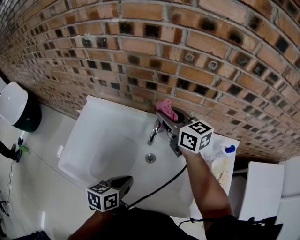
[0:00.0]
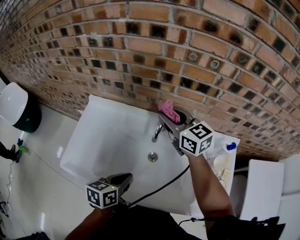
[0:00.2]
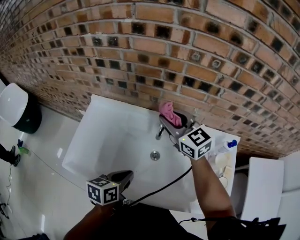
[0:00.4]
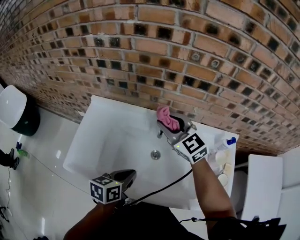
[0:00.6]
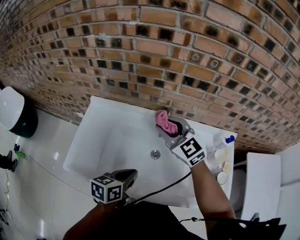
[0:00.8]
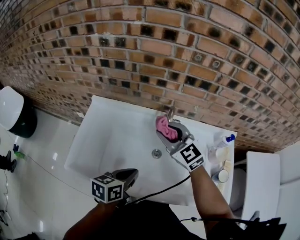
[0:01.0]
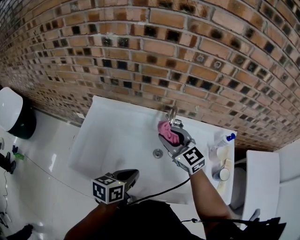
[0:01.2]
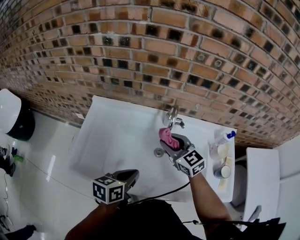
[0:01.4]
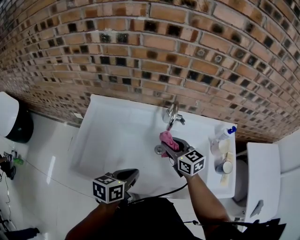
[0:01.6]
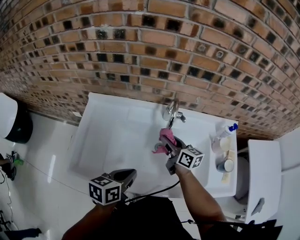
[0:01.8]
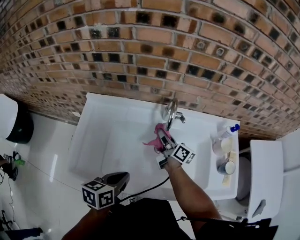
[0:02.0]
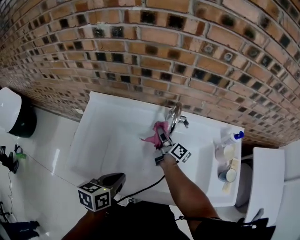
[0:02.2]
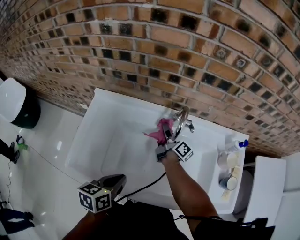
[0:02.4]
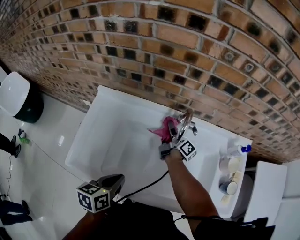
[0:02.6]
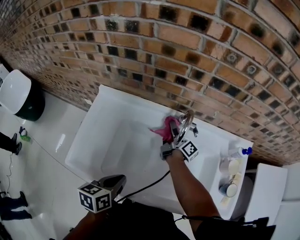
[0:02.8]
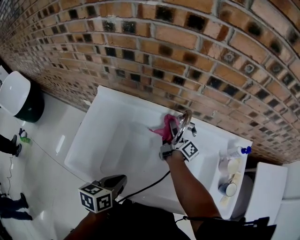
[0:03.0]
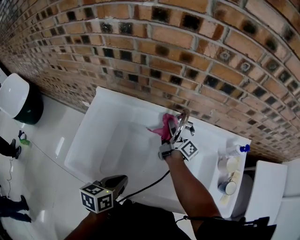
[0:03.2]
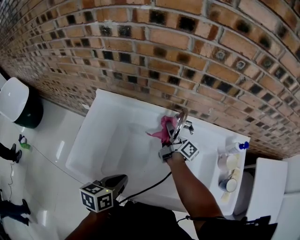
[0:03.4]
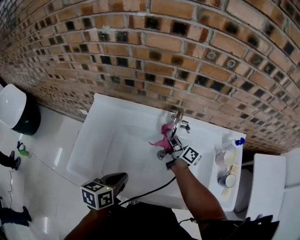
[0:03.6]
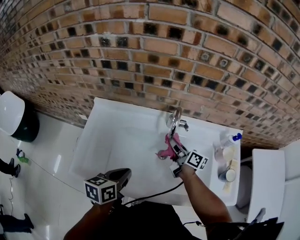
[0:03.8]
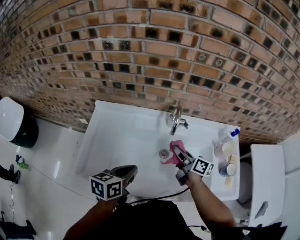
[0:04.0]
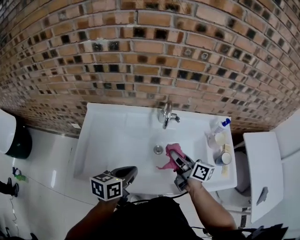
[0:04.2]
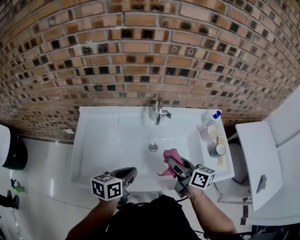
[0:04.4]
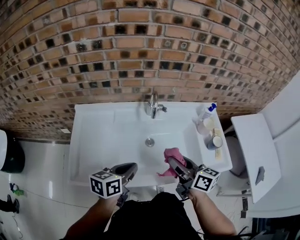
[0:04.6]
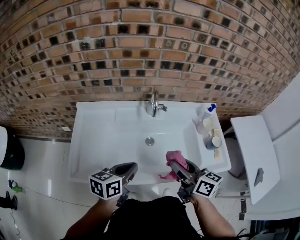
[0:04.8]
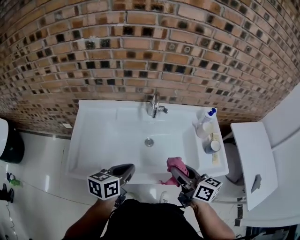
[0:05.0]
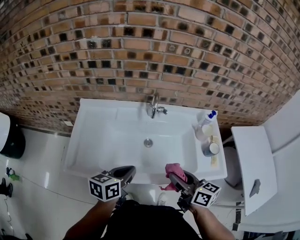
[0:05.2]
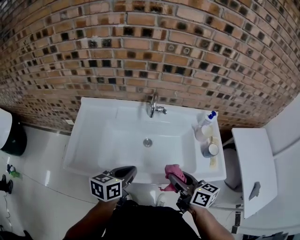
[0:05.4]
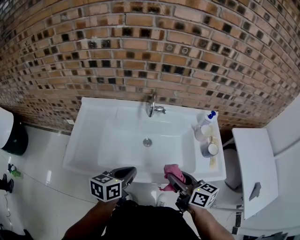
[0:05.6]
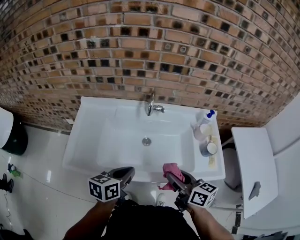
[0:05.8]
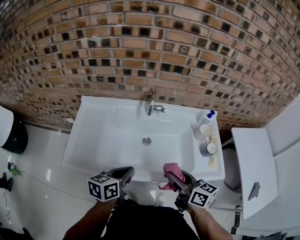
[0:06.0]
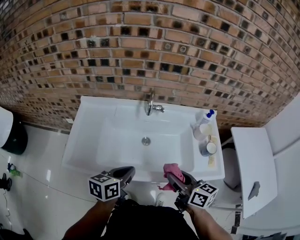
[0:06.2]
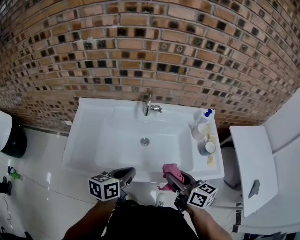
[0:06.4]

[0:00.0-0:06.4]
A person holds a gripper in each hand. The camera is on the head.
0:00.0 to 0:01.6: The left gripper moves to the left, about 5 cm, while the right gripper shifts some 20 cm backward and downward.
0:01.6 to 0:03.2: The right gripper moves forward, about 15 cm, and rotates around the line of its fingers by approximately 60 degrees, clockwise from behind.
0:03.2 to 0:04.8: The right gripper moves backward, roughly 35 cm, and rotates some 40 degrees, while the left gripper heads upward, covering approximately 5 cm, and rotates some 30 degrees.
0:04.8 to 0:06.4: The right gripper moves backward, some 5 cm; the left gripper is displaced to the right by roughly 5 cm.

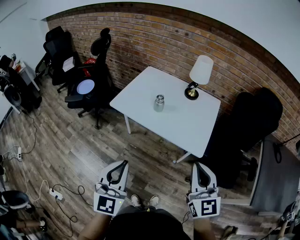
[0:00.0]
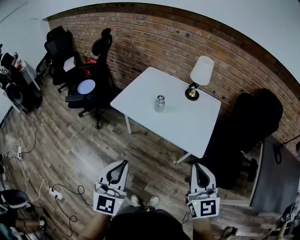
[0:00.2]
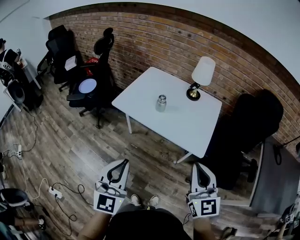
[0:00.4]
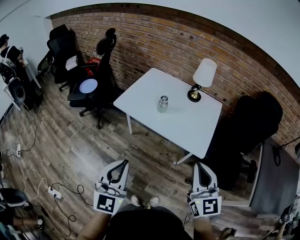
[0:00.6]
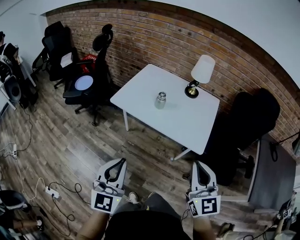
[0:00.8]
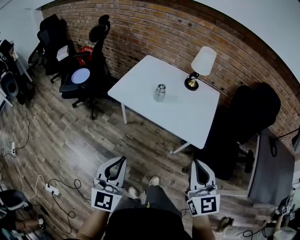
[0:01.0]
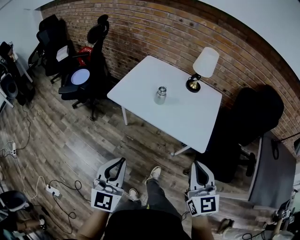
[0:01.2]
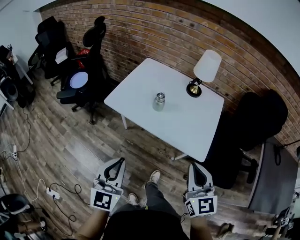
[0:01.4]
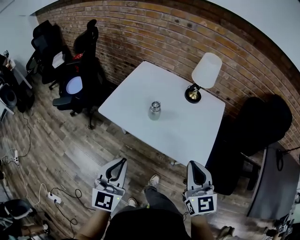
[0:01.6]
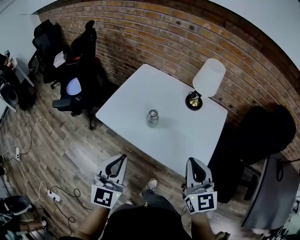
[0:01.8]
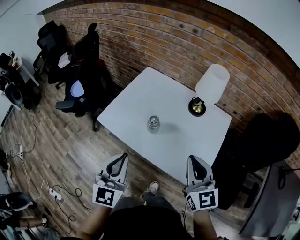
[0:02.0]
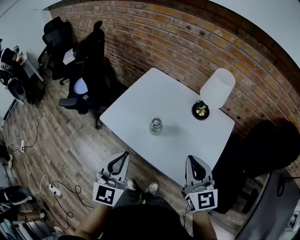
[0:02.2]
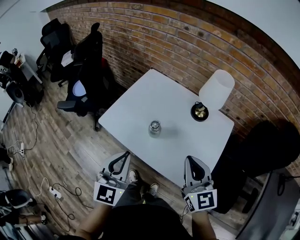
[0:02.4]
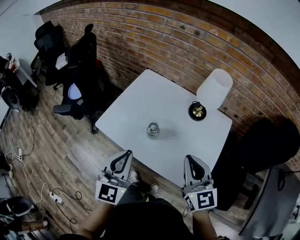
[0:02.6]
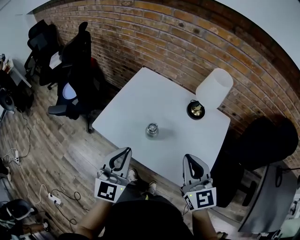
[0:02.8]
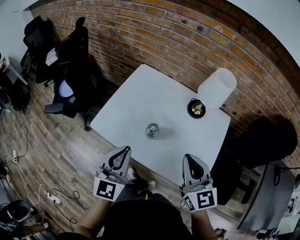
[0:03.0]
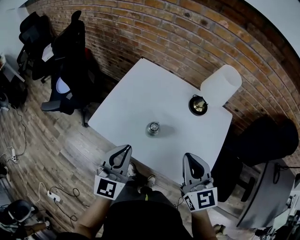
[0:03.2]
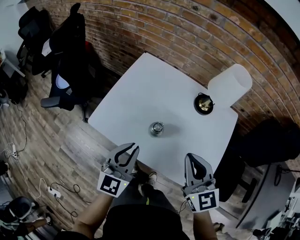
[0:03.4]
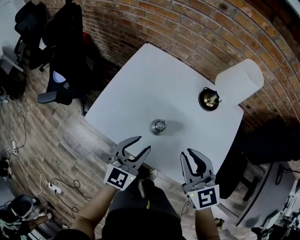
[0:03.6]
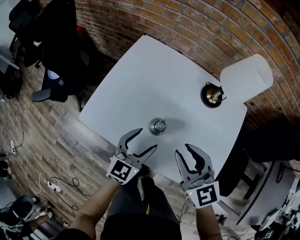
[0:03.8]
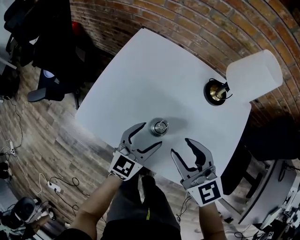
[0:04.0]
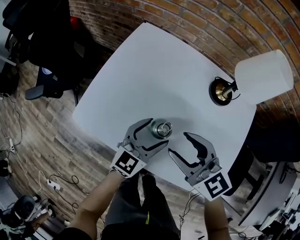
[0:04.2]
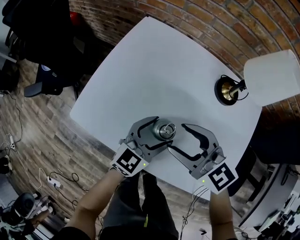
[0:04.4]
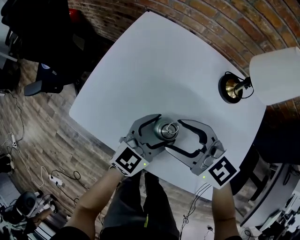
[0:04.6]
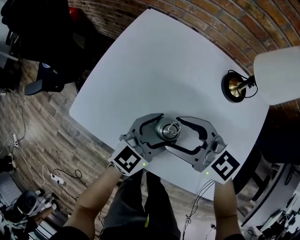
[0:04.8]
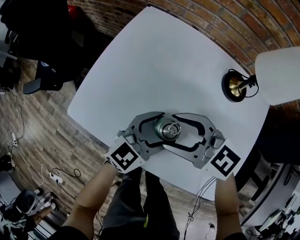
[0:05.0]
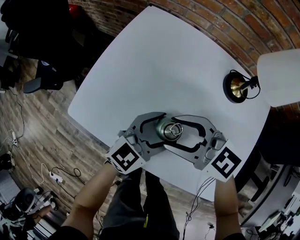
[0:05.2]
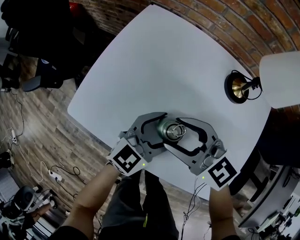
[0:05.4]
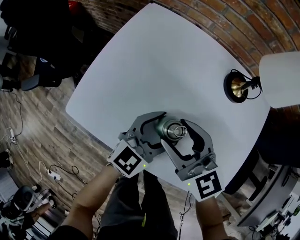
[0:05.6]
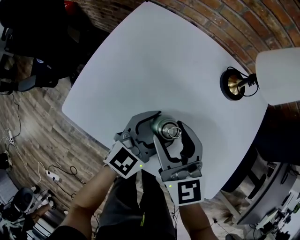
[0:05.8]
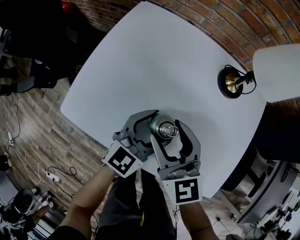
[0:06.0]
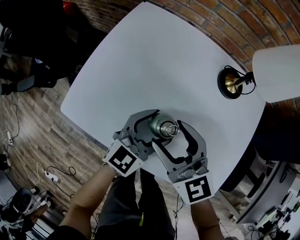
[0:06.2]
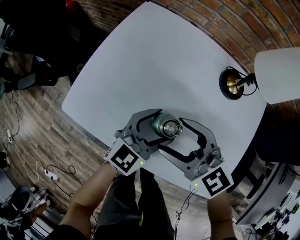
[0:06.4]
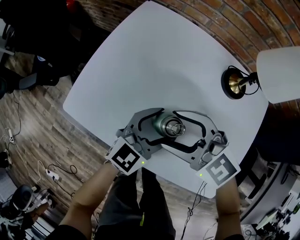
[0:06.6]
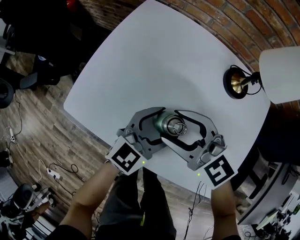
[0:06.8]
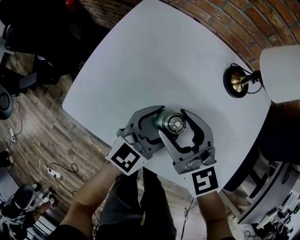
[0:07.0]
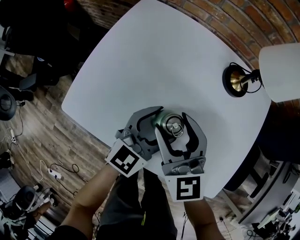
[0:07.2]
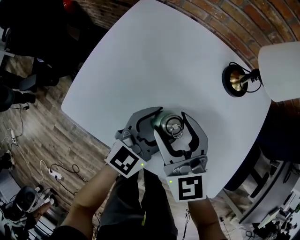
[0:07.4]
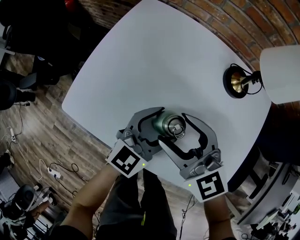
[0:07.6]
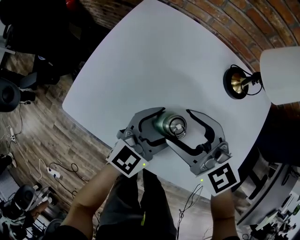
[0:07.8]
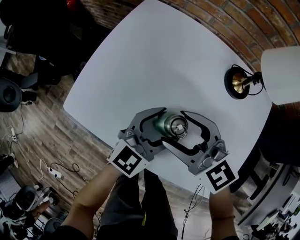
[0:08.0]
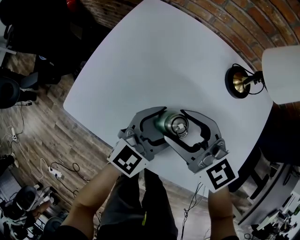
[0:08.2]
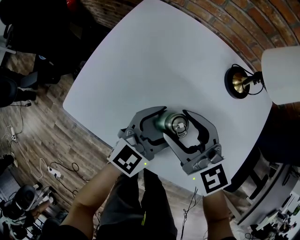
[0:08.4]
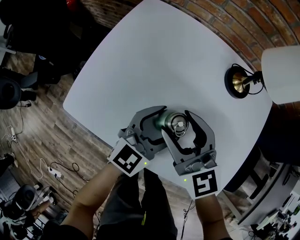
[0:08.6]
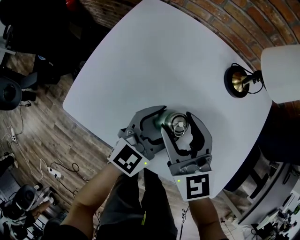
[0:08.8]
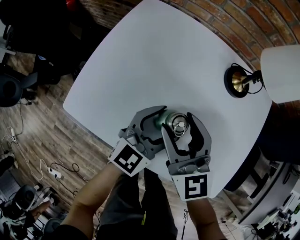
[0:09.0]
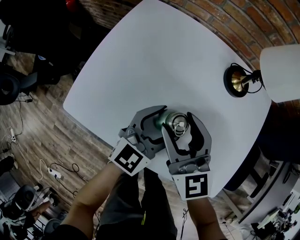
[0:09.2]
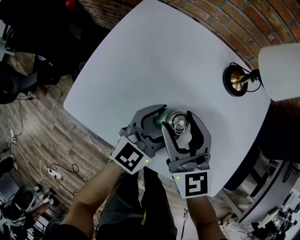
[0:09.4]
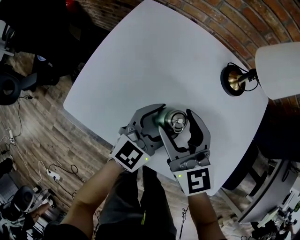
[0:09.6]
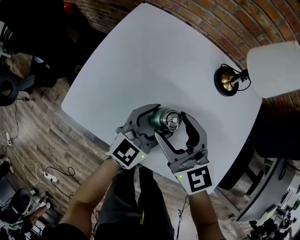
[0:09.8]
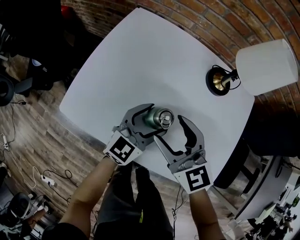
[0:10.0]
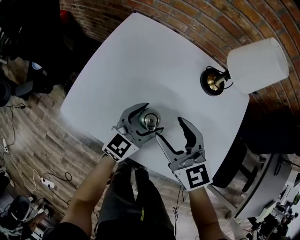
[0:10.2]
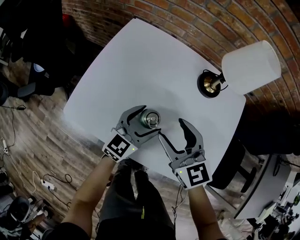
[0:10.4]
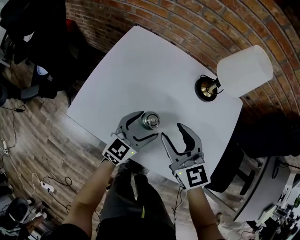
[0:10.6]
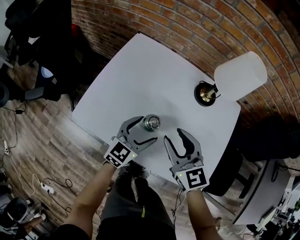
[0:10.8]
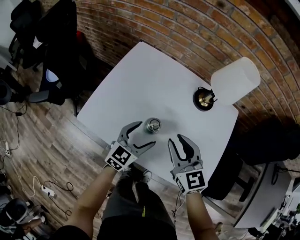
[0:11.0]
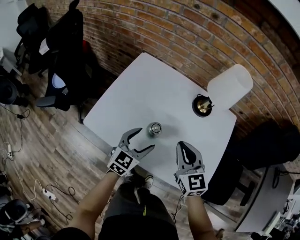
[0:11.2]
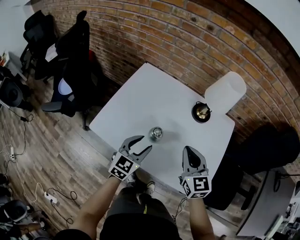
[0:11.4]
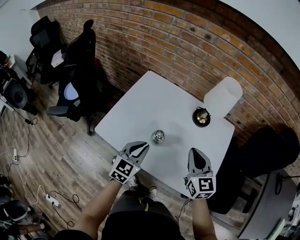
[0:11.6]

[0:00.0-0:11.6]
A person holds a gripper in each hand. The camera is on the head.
0:00.0 to 0:01.4: The grippers both shift forward and downward by roughly 10 cm.
0:01.4 to 0:02.8: Both grippers move forward, about 25 cm.
0:02.8 to 0:04.4: The left gripper heads downward and forward, covering about 30 cm, turns by about 30 degrees, and opens its fingers. The right gripper heads downward, forward and to the left, covering some 25 cm, turns by roughly 40 degrees, and opens.
0:04.4 to 0:05.8: The right gripper turns by some 30 degrees.
0:08.8 to 0:10.2: There are only small adjustments of the grippers.
0:10.2 to 0:11.6: The right gripper shifts about 15 cm to the right and upward, and closes. Meanwhile the left gripper travels upward, backward and to the left by approximately 15 cm, and closes up.

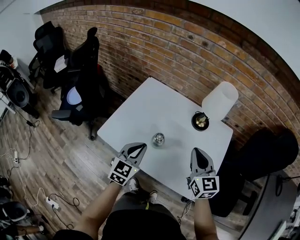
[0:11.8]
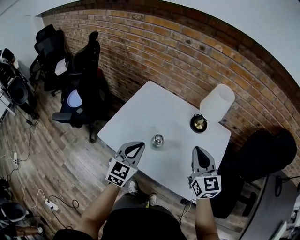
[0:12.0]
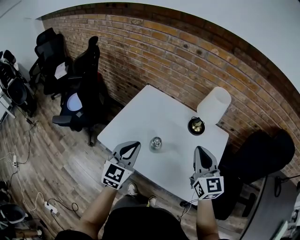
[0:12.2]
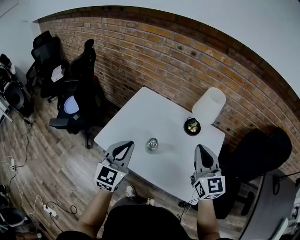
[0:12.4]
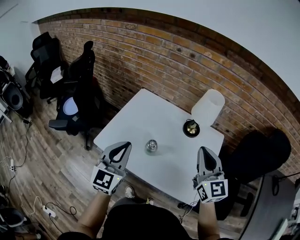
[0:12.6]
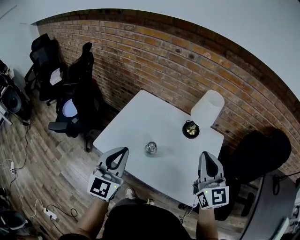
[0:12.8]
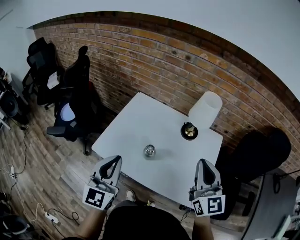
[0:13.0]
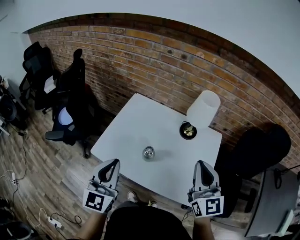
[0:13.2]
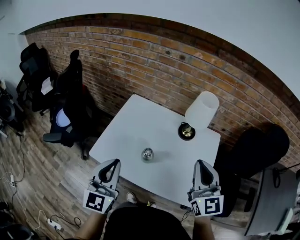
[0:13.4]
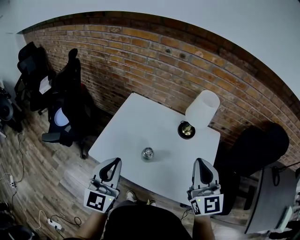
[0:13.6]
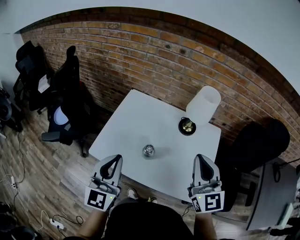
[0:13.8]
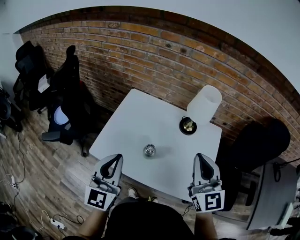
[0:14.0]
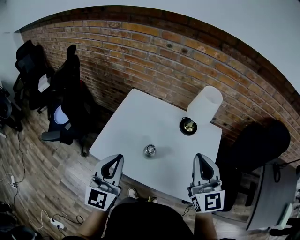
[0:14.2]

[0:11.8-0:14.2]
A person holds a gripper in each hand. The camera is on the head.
0:11.8 to 0:13.0: The grippers both shift upward by roughly 15 cm. The left gripper turns by approximately 20 degrees.
0:13.0 to 0:14.2: The grippers move only a little.

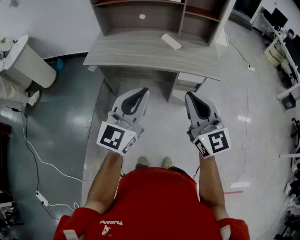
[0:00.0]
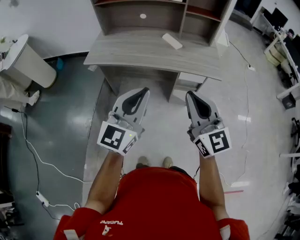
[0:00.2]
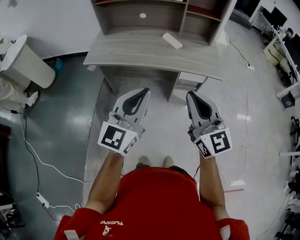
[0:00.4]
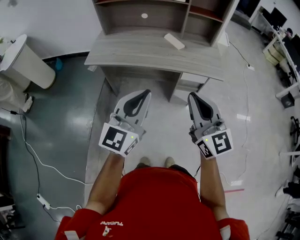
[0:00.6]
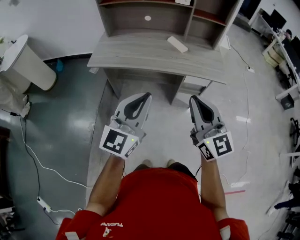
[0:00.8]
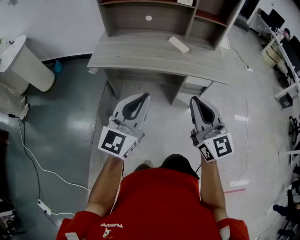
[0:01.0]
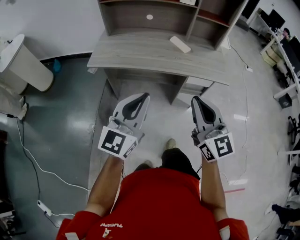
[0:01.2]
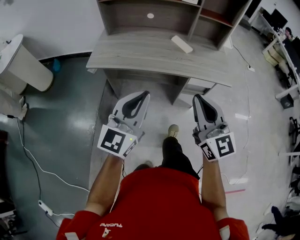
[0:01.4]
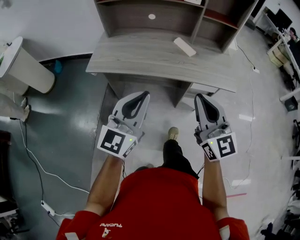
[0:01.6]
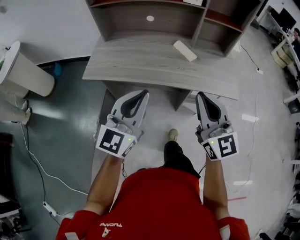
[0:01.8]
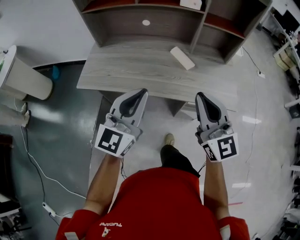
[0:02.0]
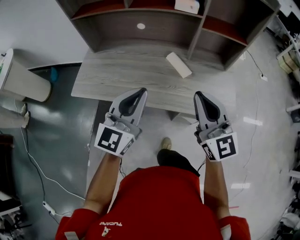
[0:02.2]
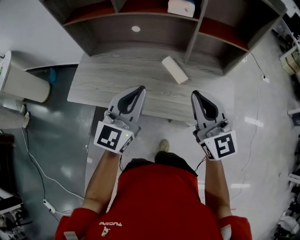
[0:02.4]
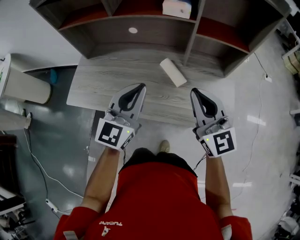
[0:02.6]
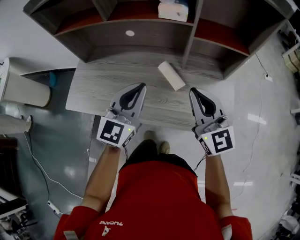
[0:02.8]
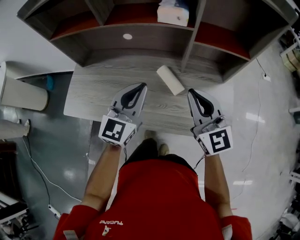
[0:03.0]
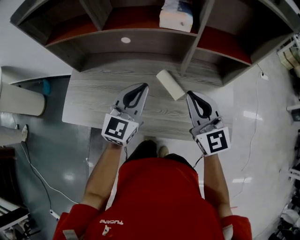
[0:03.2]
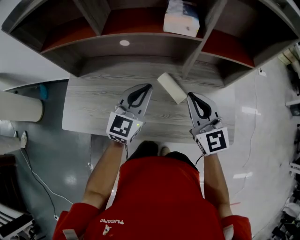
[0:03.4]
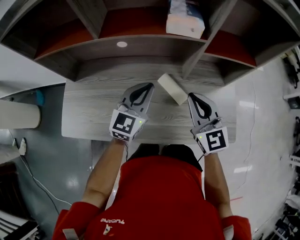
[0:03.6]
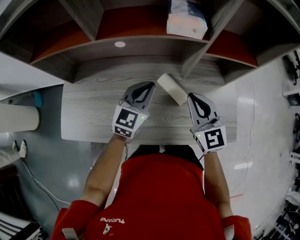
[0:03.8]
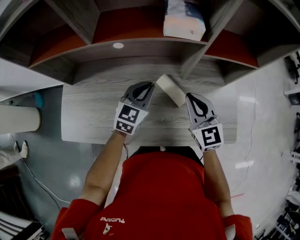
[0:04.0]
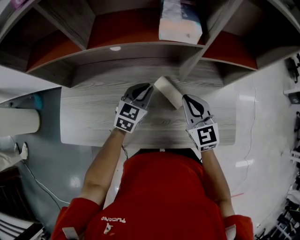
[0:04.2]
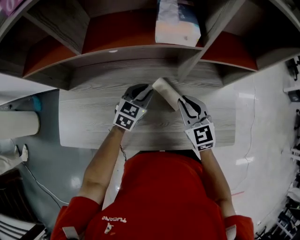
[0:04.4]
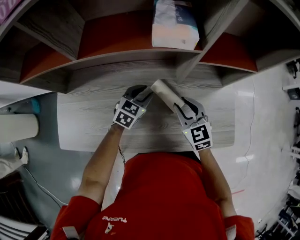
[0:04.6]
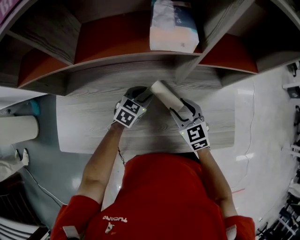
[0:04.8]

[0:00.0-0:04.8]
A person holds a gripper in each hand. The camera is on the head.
0:00.0 to 0:01.6: Both grippers move forward and to the left, approximately 15 cm.
0:01.6 to 0:03.2: Both grippers travel together forward, approximately 40 cm.
0:03.2 to 0:04.8: The left gripper heads downward and forward, covering some 25 cm, points its fingers some 40 degrees further downward, and opens its fingers. The right gripper goes roughly 20 cm downward, rotates some 30 degrees, and opens.
